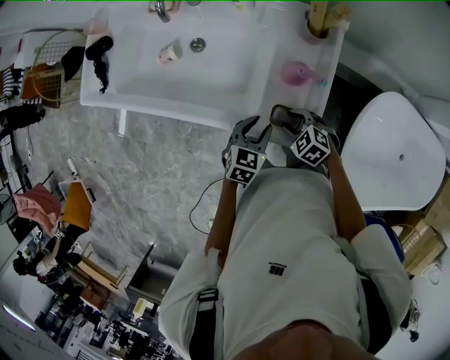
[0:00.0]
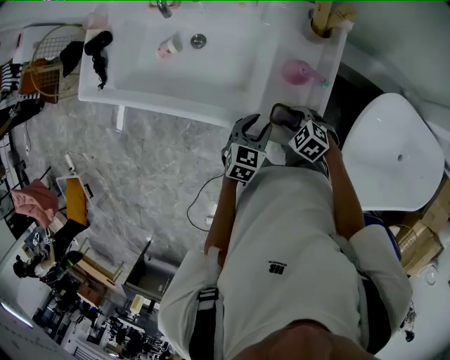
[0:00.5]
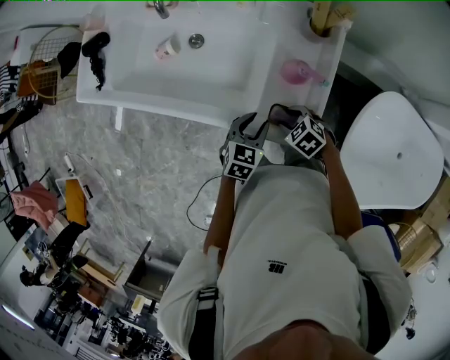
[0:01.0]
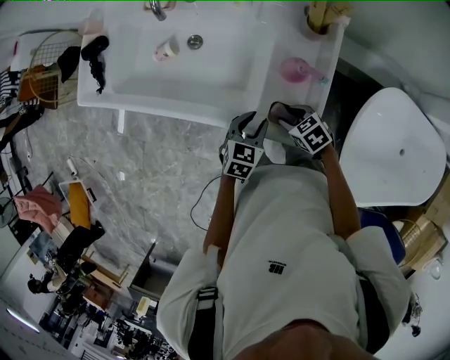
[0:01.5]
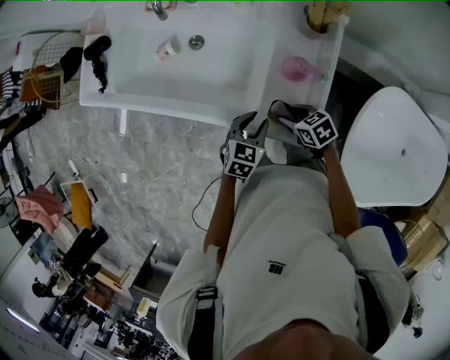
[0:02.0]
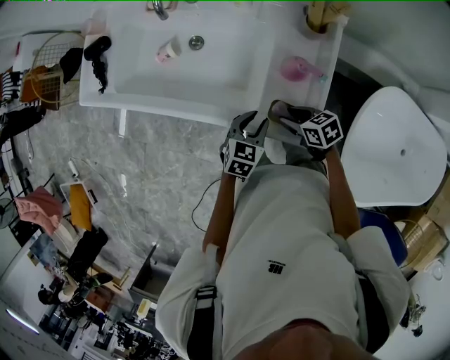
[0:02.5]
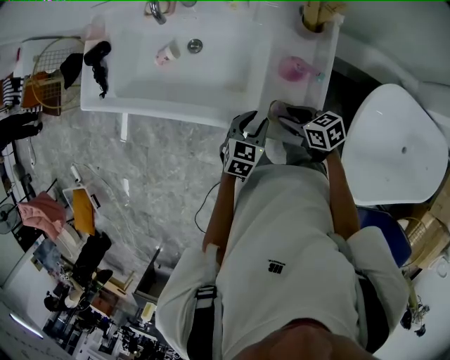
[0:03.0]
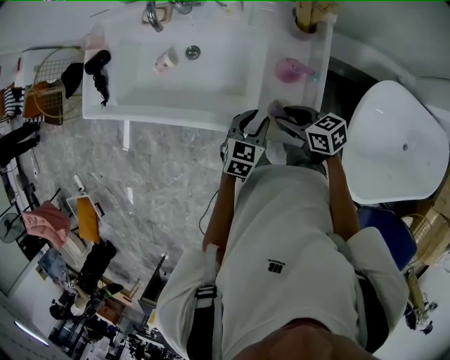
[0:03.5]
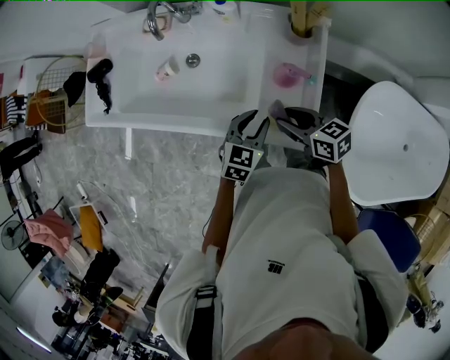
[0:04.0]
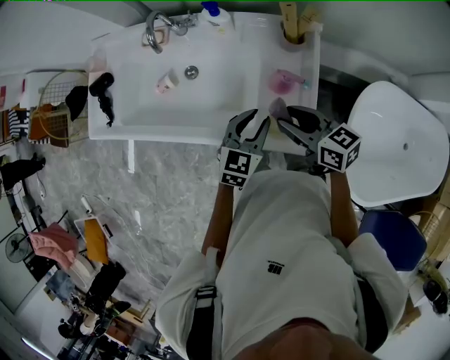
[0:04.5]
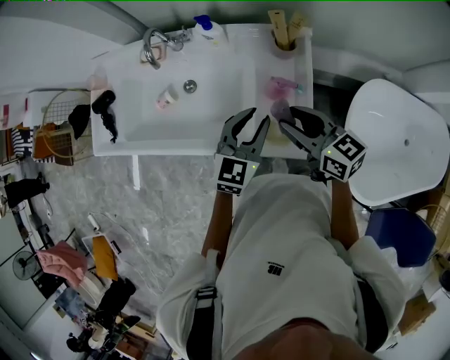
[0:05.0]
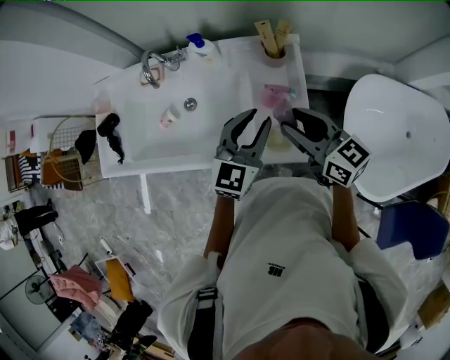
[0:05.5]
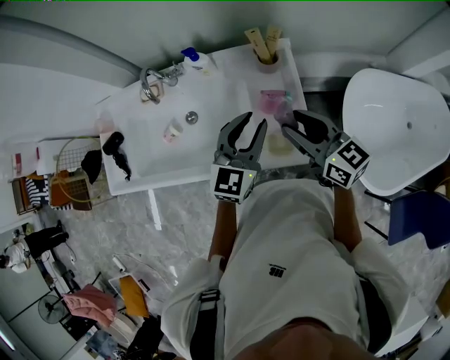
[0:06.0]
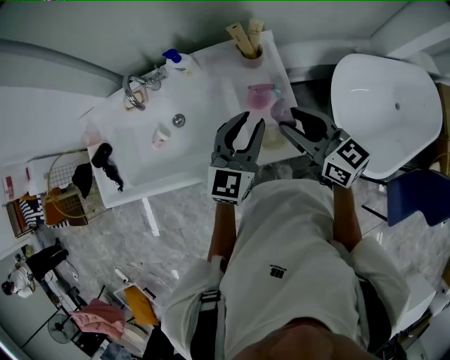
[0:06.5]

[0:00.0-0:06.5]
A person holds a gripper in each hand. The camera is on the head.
0:00.0 to 0:02.0: The right gripper changes its angle by roughly 40 degrees.
0:02.0 to 0:04.5: The right gripper goes about 20 cm upward, and tilts its fingers about 30 degrees upward. The left gripper goes some 10 cm upward.
0:04.5 to 0:06.5: Both grippers move upward, about 10 cm. The left gripper changes its angle by about 20 degrees. The right gripper changes its angle by approximately 30 degrees.

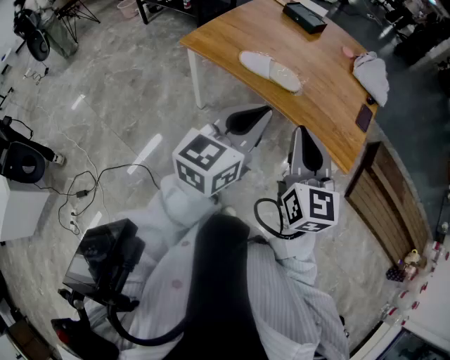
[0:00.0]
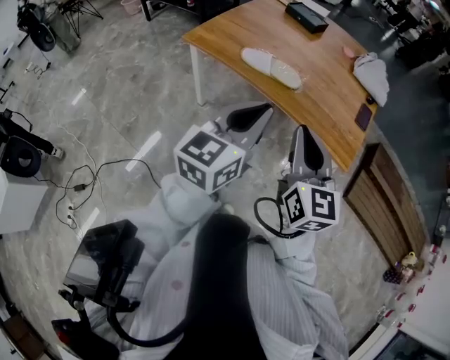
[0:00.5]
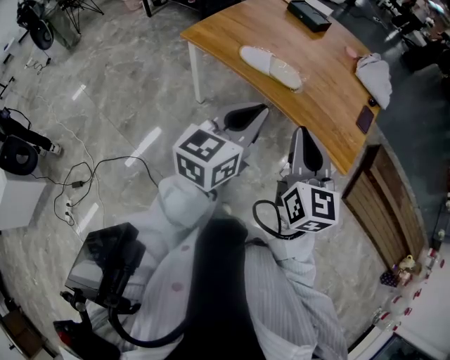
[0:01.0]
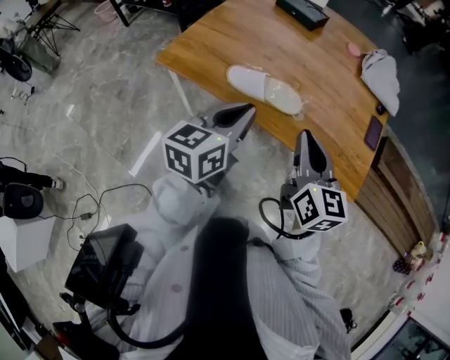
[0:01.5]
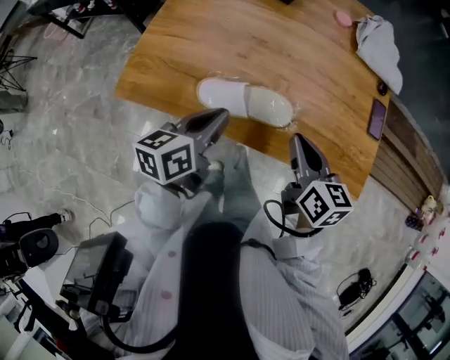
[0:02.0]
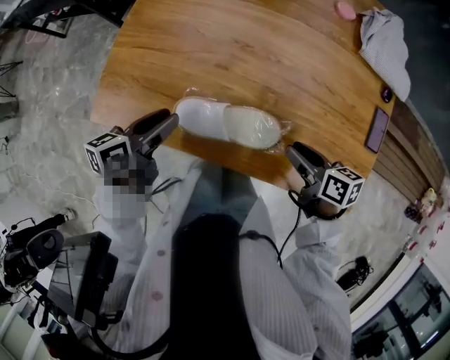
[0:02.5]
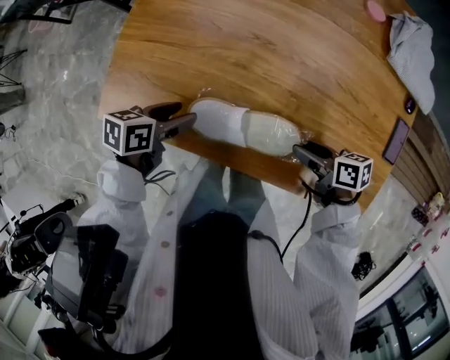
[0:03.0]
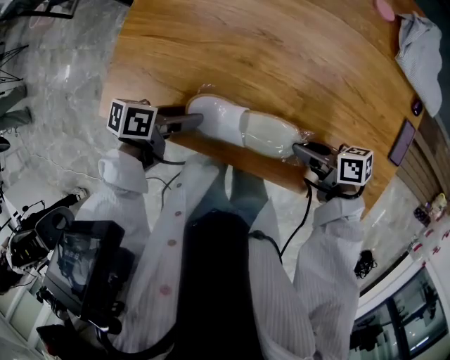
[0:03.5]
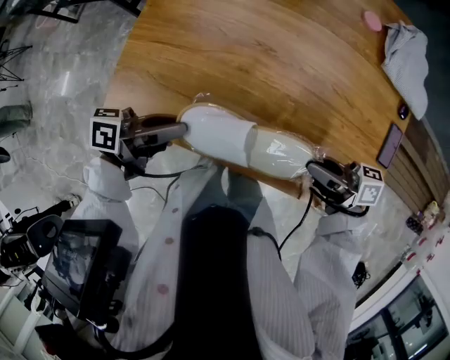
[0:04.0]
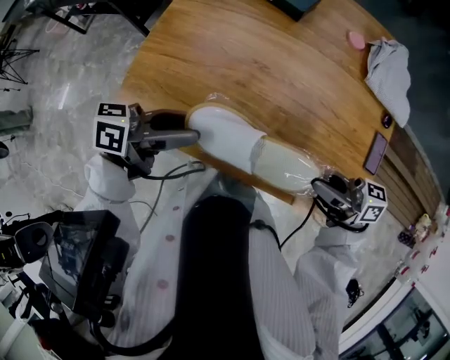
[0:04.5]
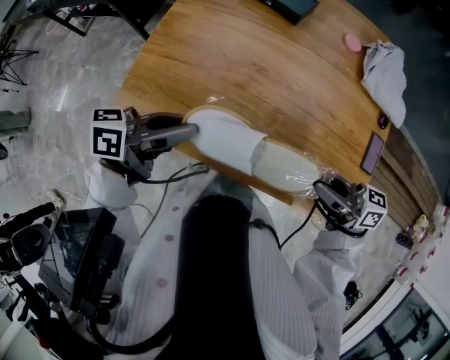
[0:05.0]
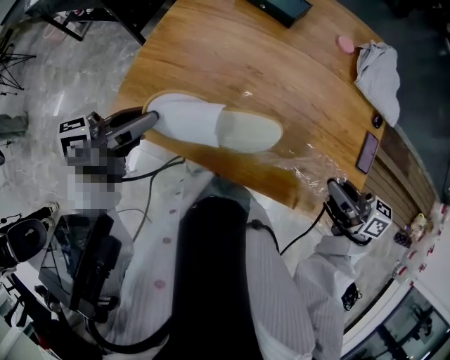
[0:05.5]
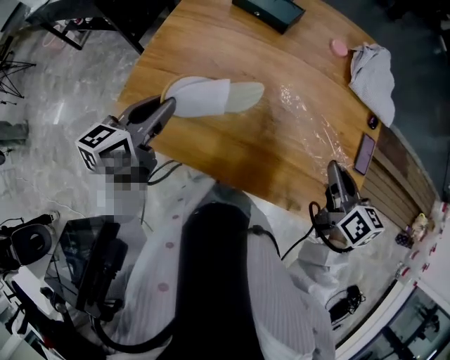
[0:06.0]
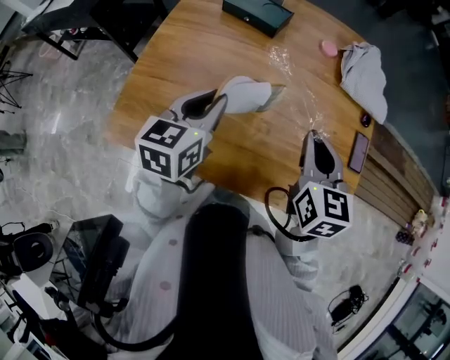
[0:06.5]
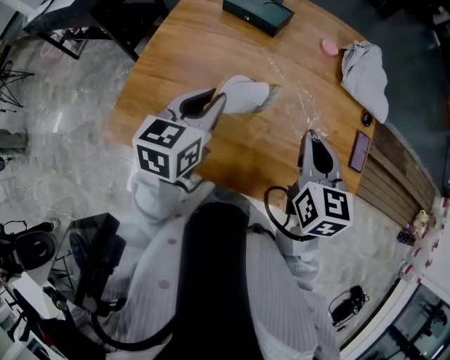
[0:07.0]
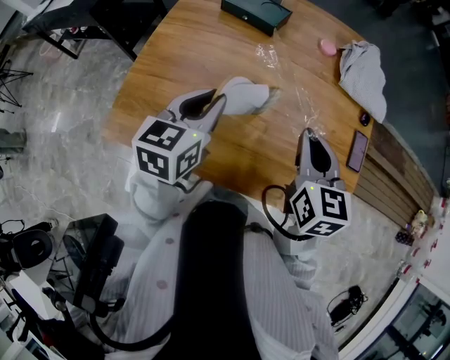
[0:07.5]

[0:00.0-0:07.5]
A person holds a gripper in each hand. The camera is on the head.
0:00.0 to 0:02.0: The two grippers go some 35 cm forward and downward. The right gripper swivels about 30 degrees; the left gripper rotates approximately 40 degrees.
0:02.0 to 0:04.0: The right gripper reaches roughly 15 cm downward, then returns, rotates some 60 degrees, and opens, then closes once more, while the left gripper goes downward and returns, about 15 cm each way, swivels about 40 degrees, and opens and closes again.
0:04.0 to 0:05.5: The grippers both shift upward by approximately 10 cm. The left gripper rotates some 20 degrees, and opens, then closes once more, while the right gripper rotates roughly 20 degrees.
0:05.5 to 0:07.5: The left gripper goes about 15 cm to the right and forward, and turns by approximately 40 degrees, while the right gripper is displaced to the left and forward by roughly 15 cm, and turns by some 60 degrees.

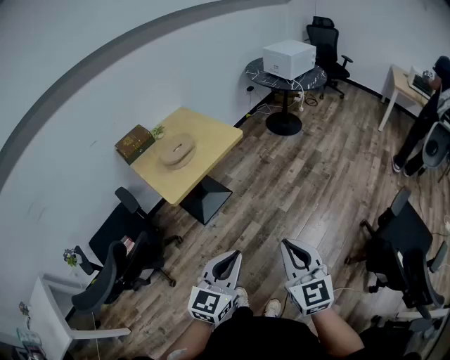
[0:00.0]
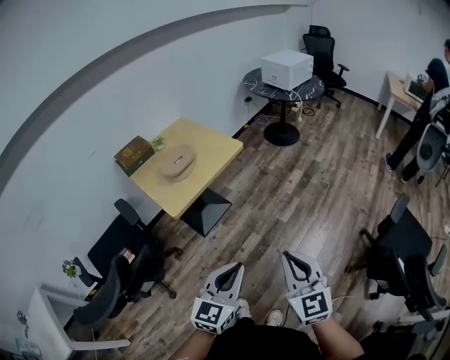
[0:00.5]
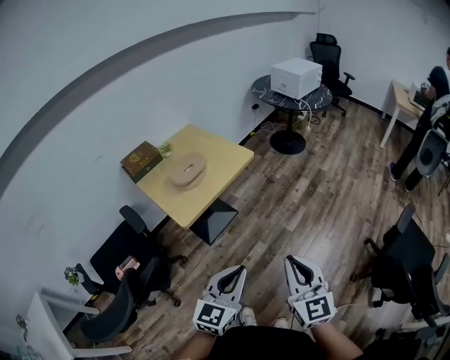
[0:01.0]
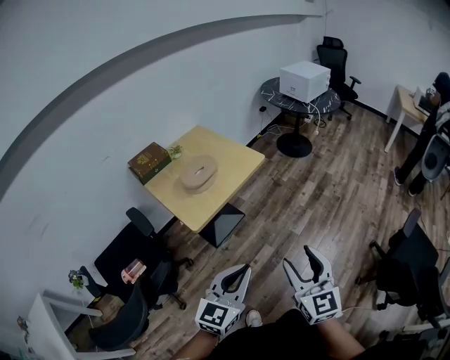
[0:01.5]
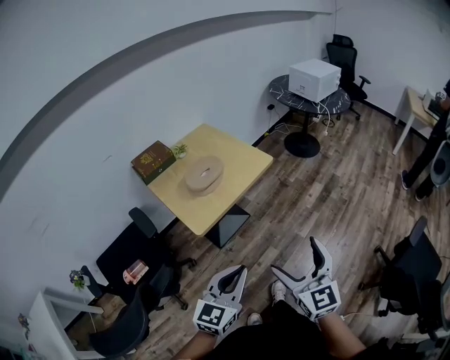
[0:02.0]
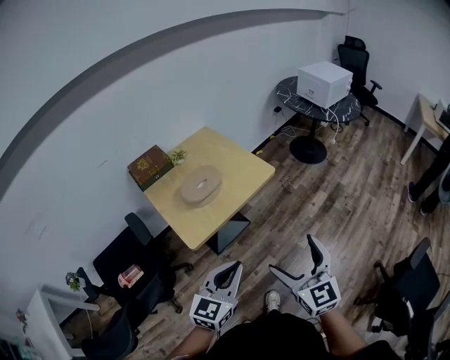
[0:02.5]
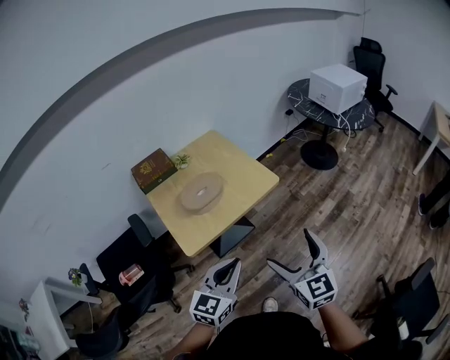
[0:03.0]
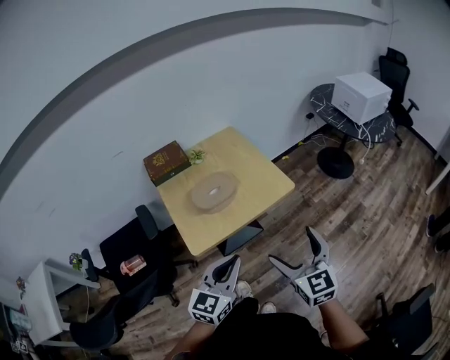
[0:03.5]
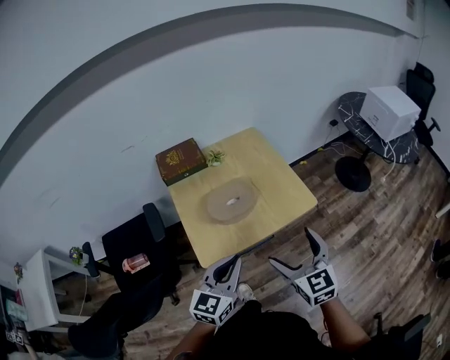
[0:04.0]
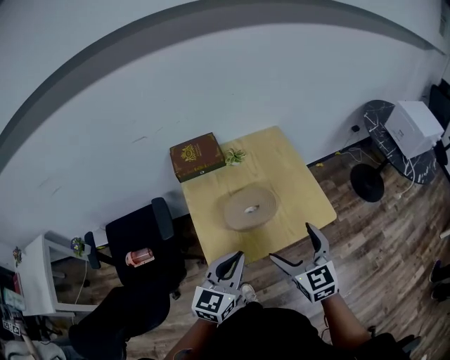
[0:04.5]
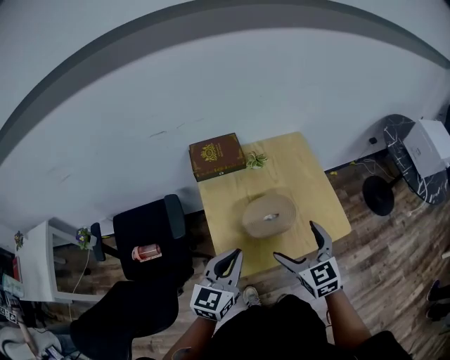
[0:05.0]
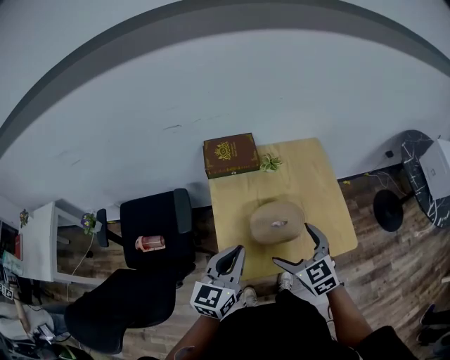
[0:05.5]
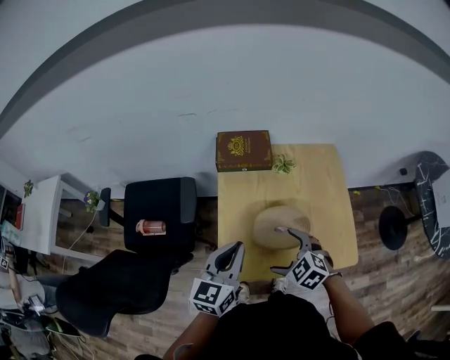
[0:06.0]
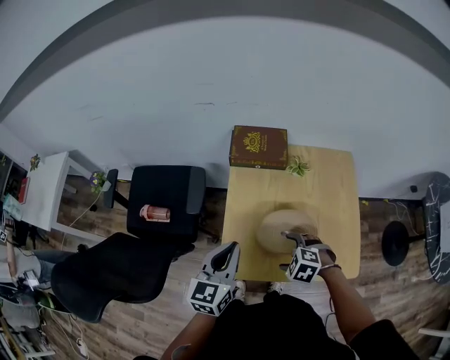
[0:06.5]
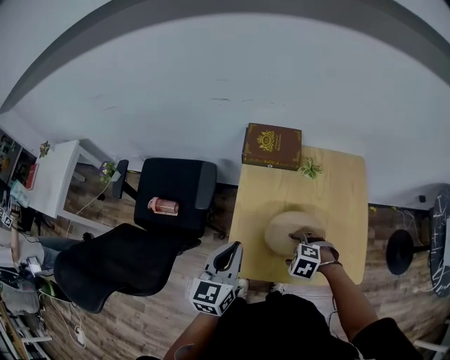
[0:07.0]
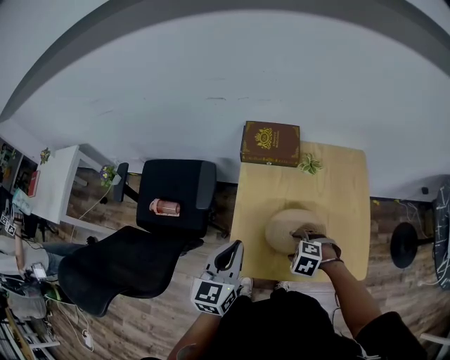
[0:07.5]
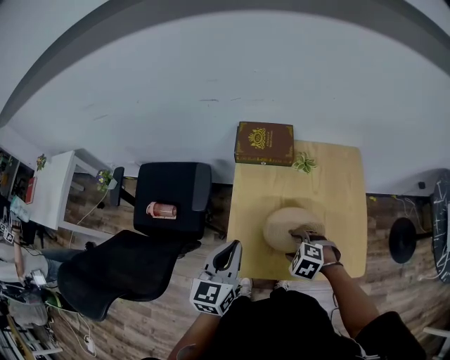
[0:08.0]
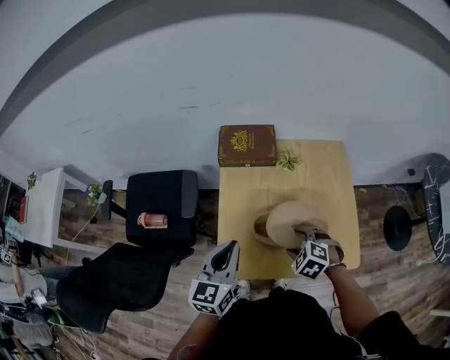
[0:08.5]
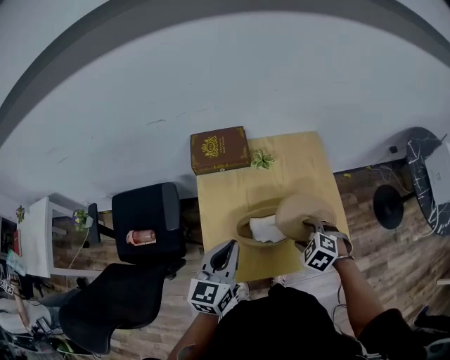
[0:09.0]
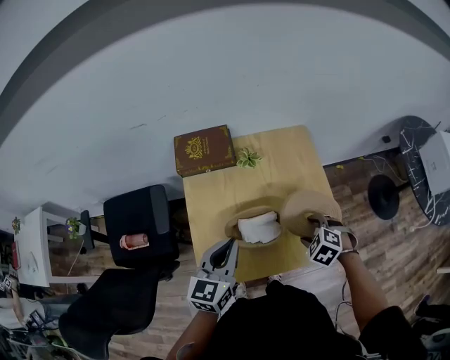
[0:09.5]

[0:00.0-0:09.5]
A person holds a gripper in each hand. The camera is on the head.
0:00.0 to 0:02.0: Both grippers travel together to the left and forward, approximately 15 cm. The right gripper opens up.
0:02.0 to 0:04.0: Both grippers move forward, roughly 30 cm. The right gripper turns by some 30 degrees, while the left gripper changes its angle by roughly 20 degrees.
0:04.0 to 0:05.5: The grippers both shift forward and to the left by approximately 20 cm. The left gripper changes its angle by roughly 20 degrees. Meanwhile the right gripper turns by approximately 30 degrees.
0:05.5 to 0:07.5: The right gripper travels downward by approximately 15 cm, angles its fingers downward, by roughly 50 degrees, and closes, while the left gripper changes place by some 5 cm, and rotates some 20 degrees.
0:07.5 to 0:09.5: The right gripper shifts by some 20 cm, and changes its angle by about 30 degrees; the left gripper ends up some 15 cm from where it was.

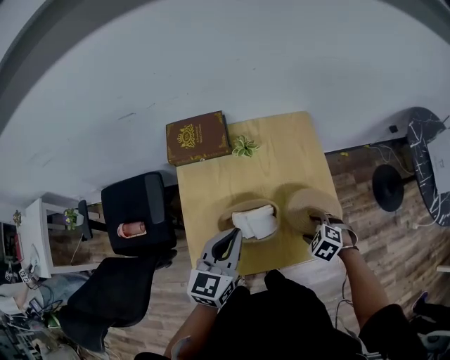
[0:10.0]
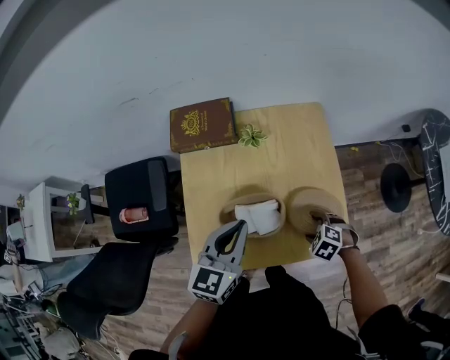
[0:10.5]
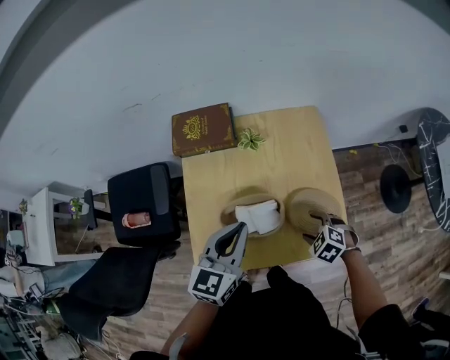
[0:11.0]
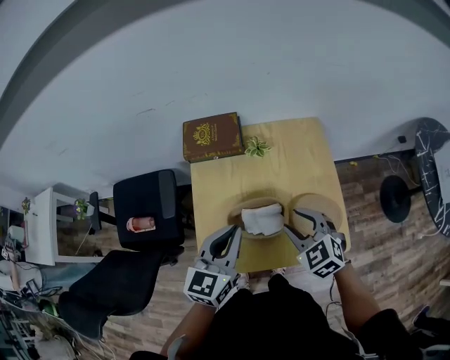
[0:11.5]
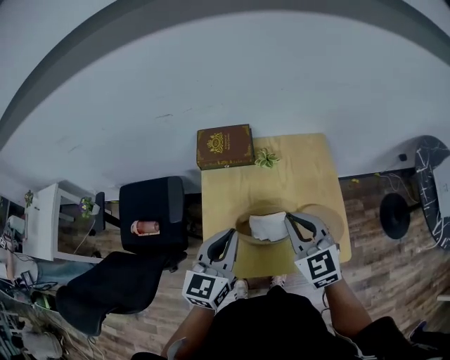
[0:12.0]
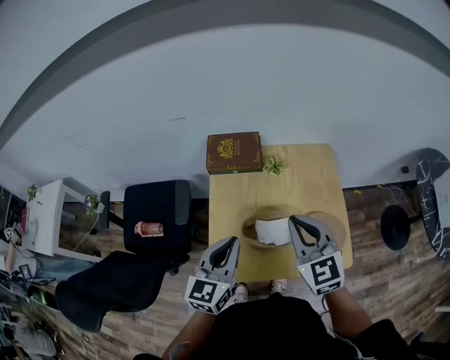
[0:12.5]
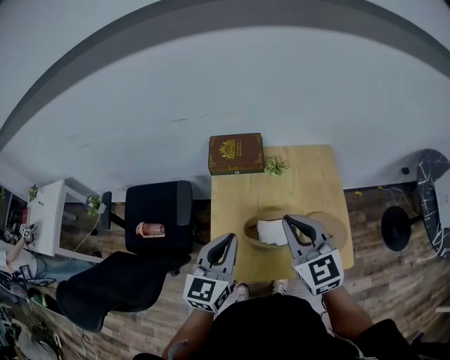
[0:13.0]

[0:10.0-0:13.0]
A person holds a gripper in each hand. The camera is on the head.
0:10.0 to 0:11.5: The right gripper shifts about 15 cm upward, and tilts its fingers approximately 30 degrees upward.
0:11.5 to 0:13.0: The left gripper is displaced to the left by some 5 cm; the right gripper goes some 15 cm upward and to the left, and turns by some 30 degrees.
